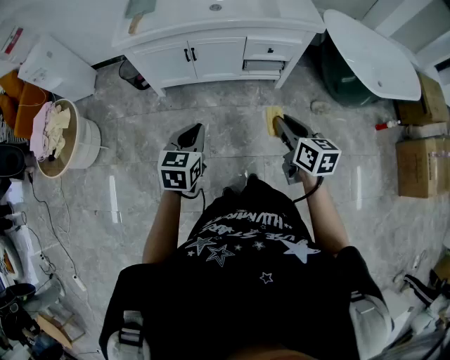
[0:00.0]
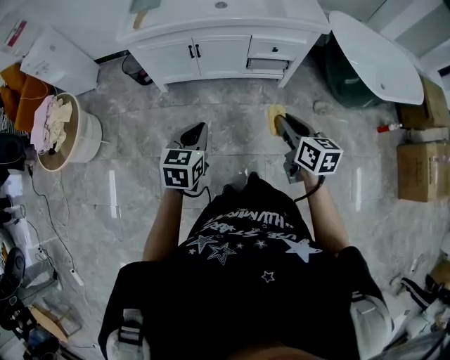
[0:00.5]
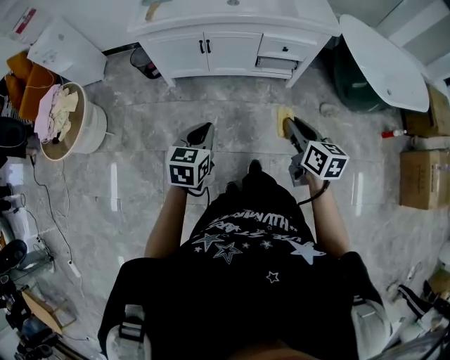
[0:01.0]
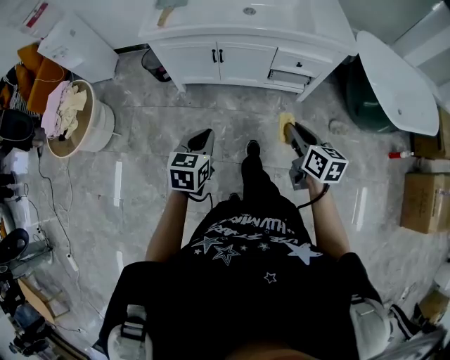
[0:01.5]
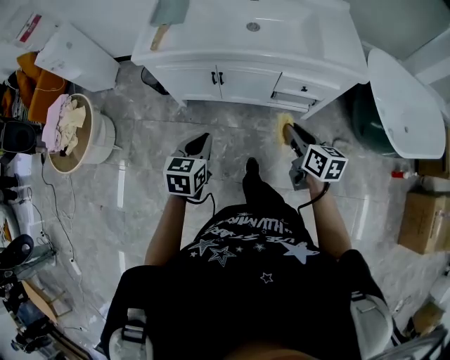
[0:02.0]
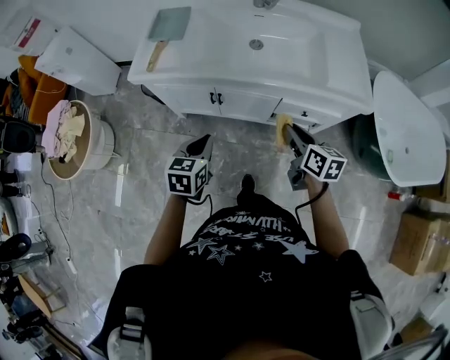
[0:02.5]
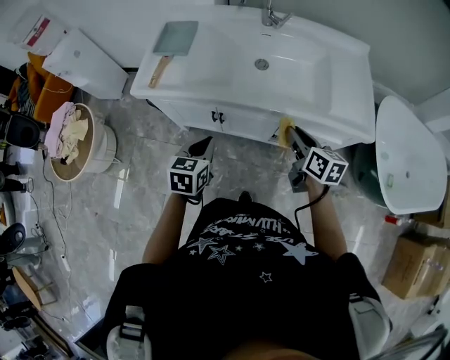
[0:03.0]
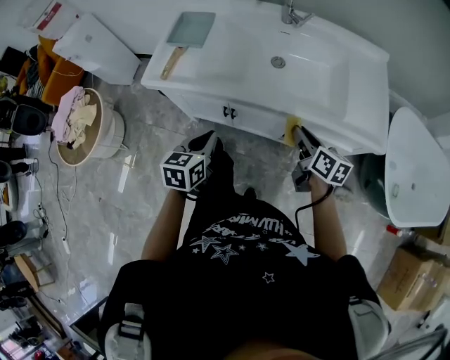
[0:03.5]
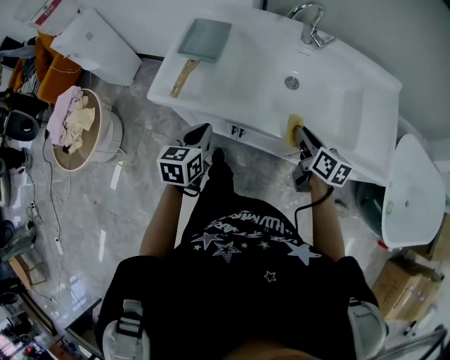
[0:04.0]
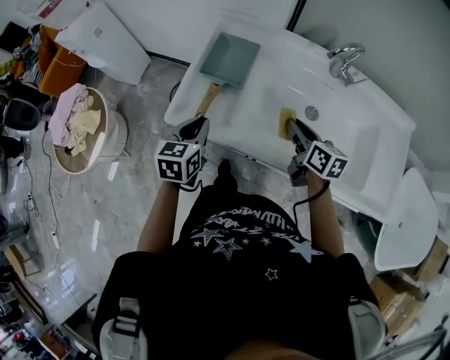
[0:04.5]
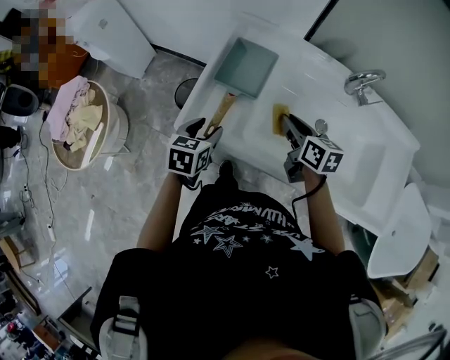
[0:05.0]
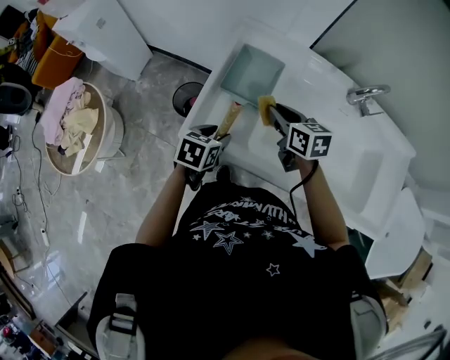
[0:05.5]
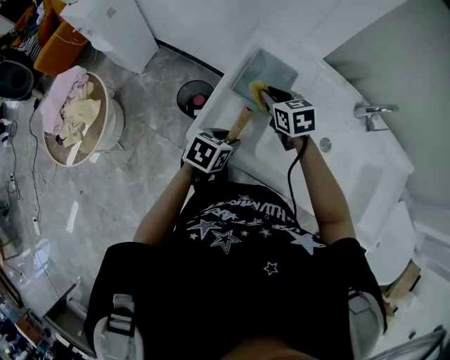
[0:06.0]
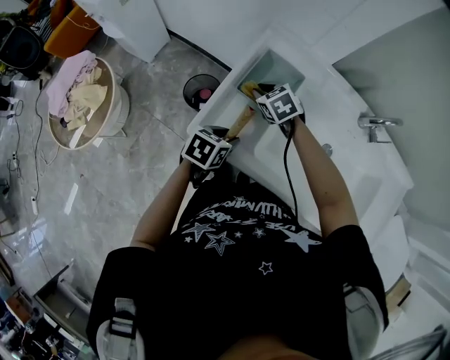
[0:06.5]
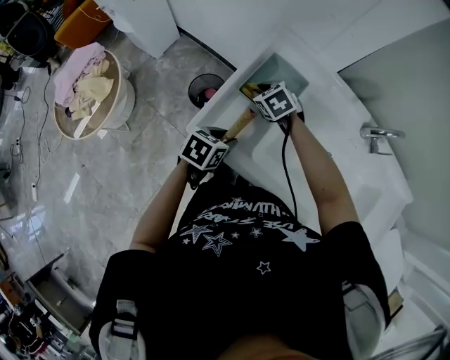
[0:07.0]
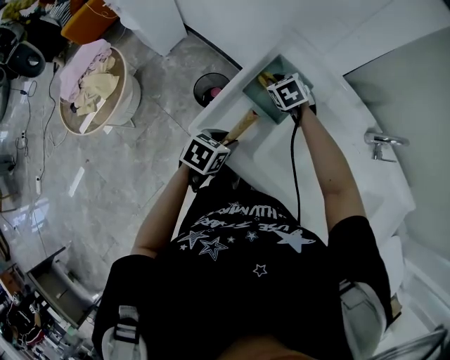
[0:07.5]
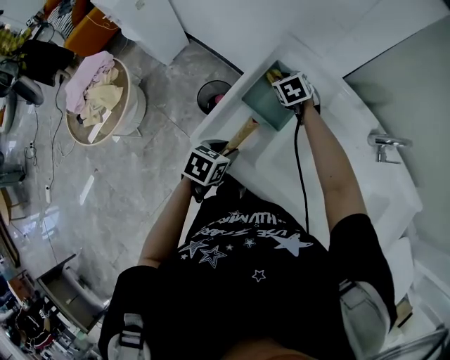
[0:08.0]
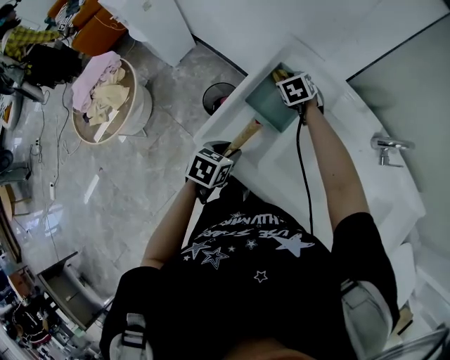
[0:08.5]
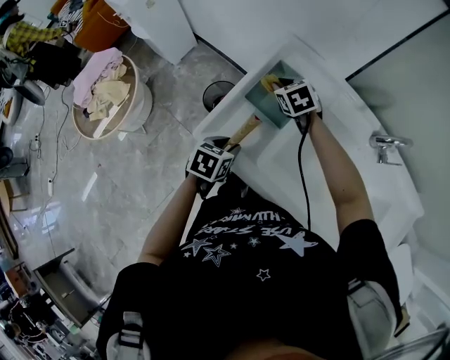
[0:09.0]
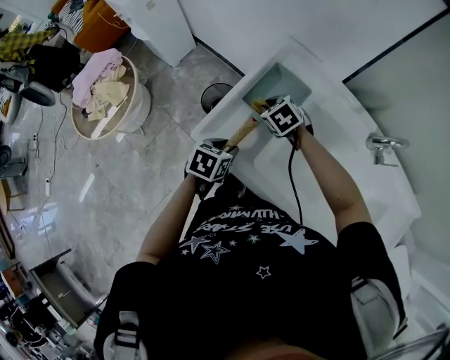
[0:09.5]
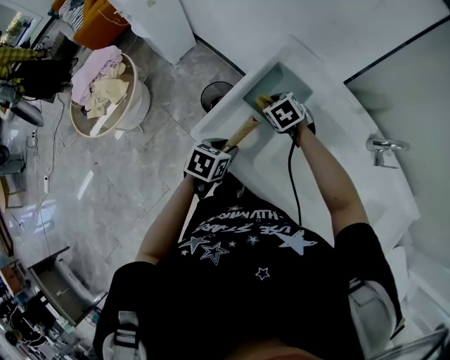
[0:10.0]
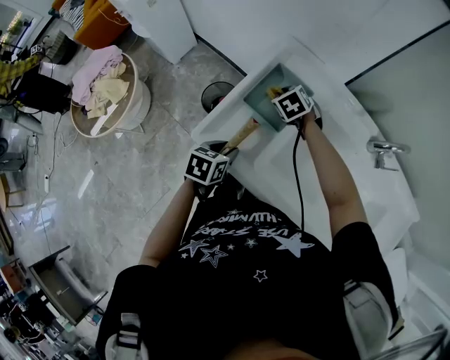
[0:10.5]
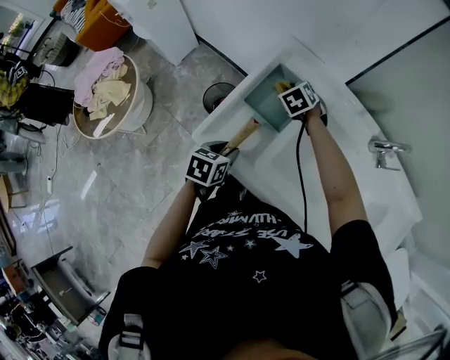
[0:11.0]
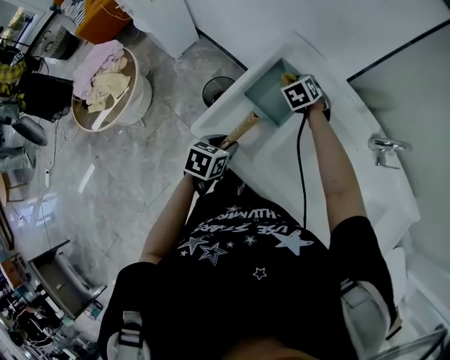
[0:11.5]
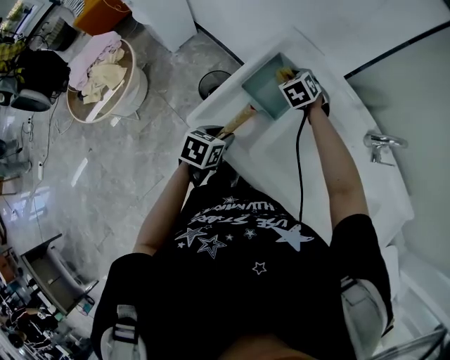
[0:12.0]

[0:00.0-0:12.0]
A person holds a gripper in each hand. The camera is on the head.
0:00.0 to 0:02.0: The two grippers go some 20 cm forward.
0:02.0 to 0:04.0: The two grippers go approximately 35 cm forward.
0:04.0 to 0:06.0: The right gripper travels to the left and forward by roughly 50 cm, and rolls counterclockwise, seen from behind, by approximately 40 degrees. Meanwhile the left gripper shifts roughly 20 cm forward and to the left, turns by some 20 degrees, and opens up.
0:06.0 to 0:08.0: The right gripper is displaced forward and downward by some 15 cm, and changes its angle by about 20 degrees.
0:08.0 to 0:10.0: The right gripper travels backward by roughly 10 cm.
0:10.0 to 0:12.0: The right gripper is displaced forward by approximately 10 cm.

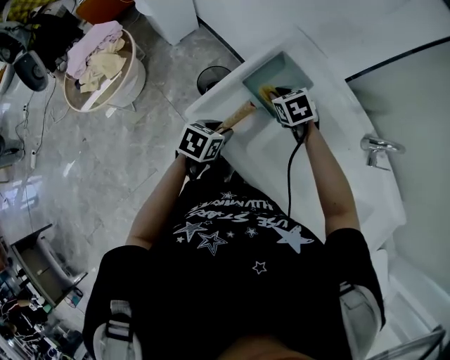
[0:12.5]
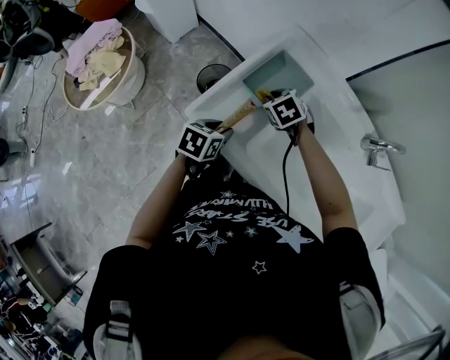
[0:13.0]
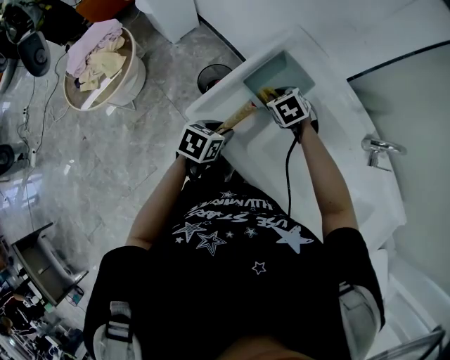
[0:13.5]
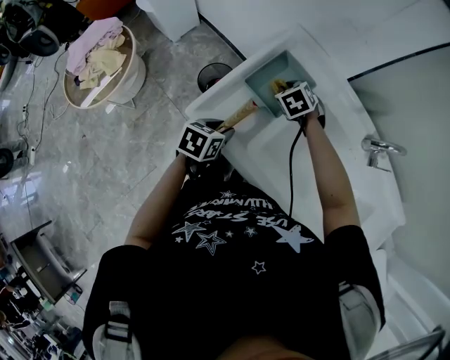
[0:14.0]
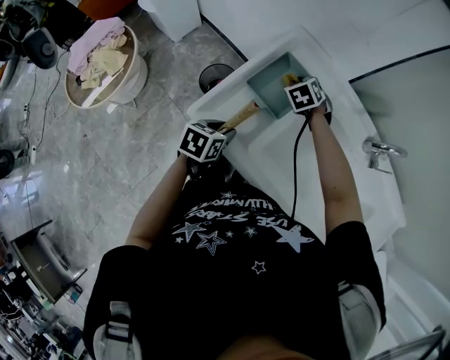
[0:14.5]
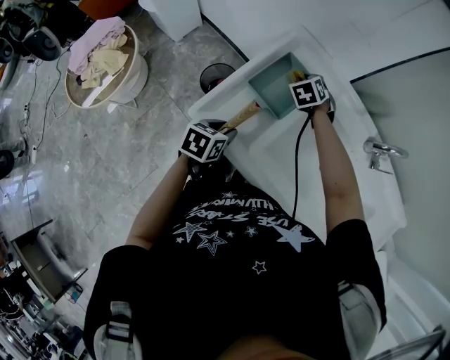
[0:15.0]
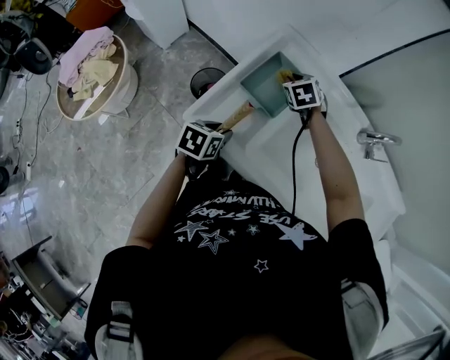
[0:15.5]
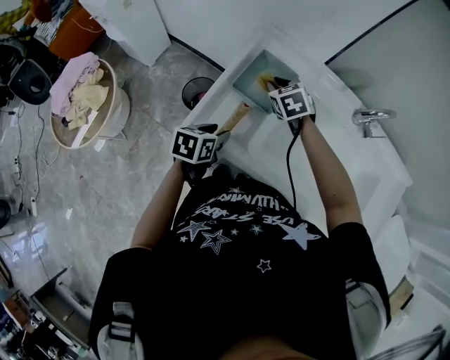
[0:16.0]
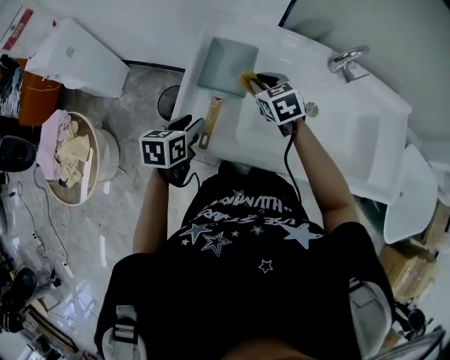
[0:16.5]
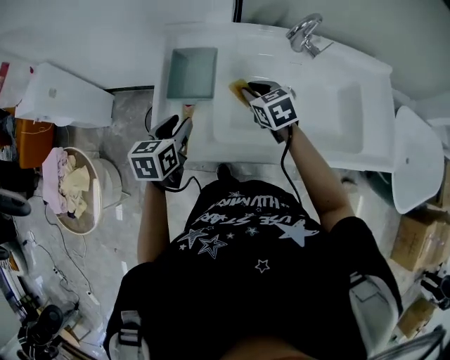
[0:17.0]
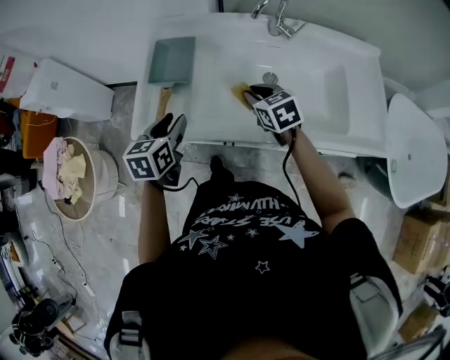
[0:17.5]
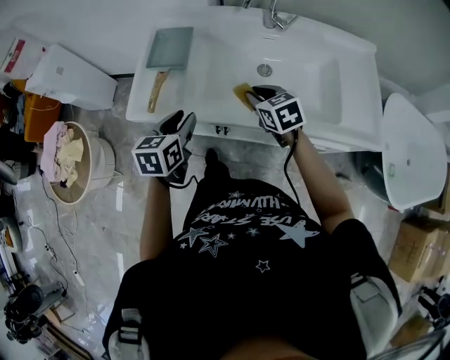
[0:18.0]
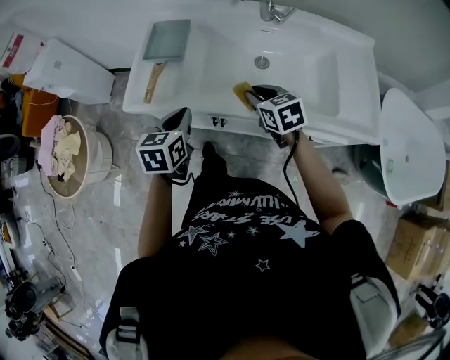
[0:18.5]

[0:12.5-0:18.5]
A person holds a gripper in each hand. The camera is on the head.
0:12.5 to 0:14.5: The right gripper is displaced forward by approximately 10 cm.
0:14.5 to 0:16.5: The left gripper moves about 5 cm. The right gripper shifts some 15 cm backward, upward and to the right, and turns by approximately 30 degrees.
0:16.5 to 0:18.5: The right gripper goes approximately 35 cm backward and to the right. The left gripper is displaced to the right and backward by approximately 25 cm, and closes its fingers.

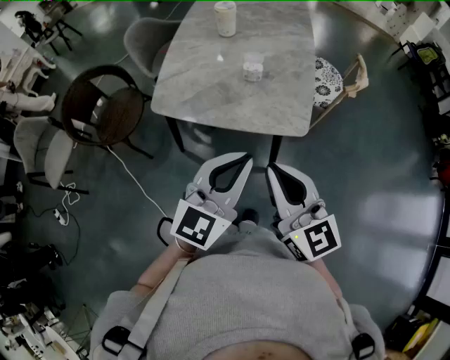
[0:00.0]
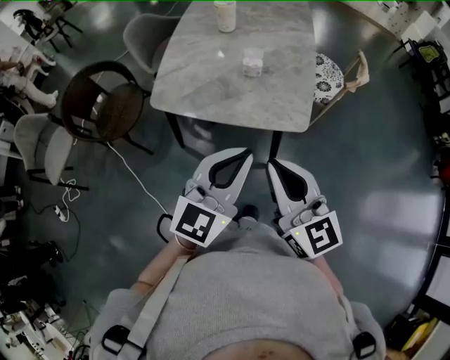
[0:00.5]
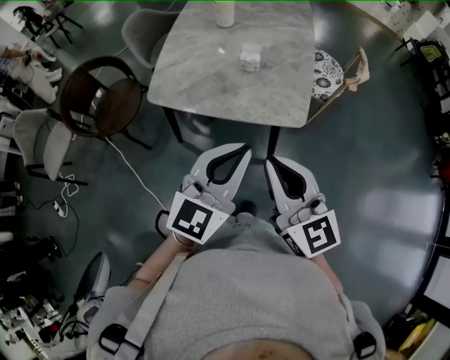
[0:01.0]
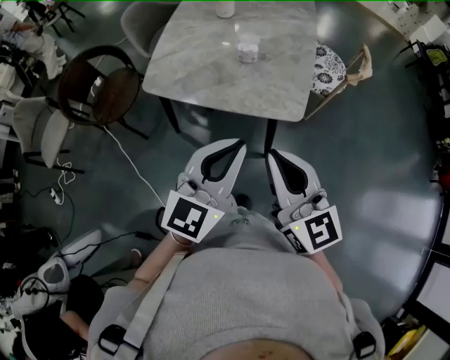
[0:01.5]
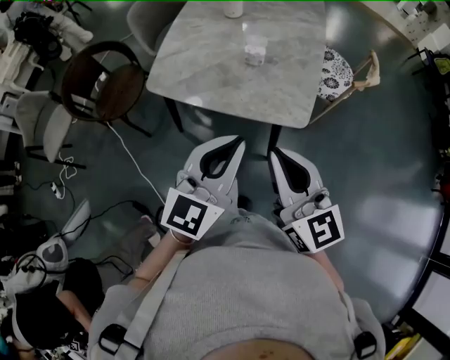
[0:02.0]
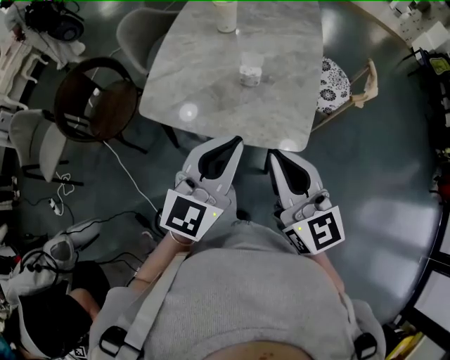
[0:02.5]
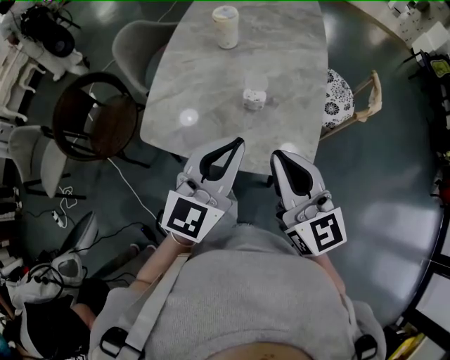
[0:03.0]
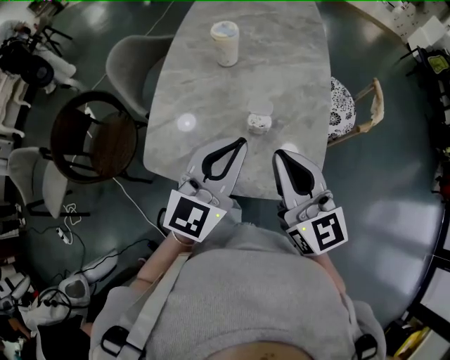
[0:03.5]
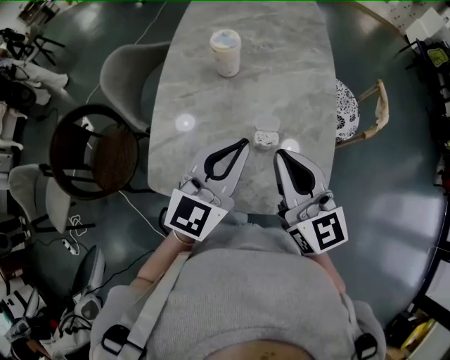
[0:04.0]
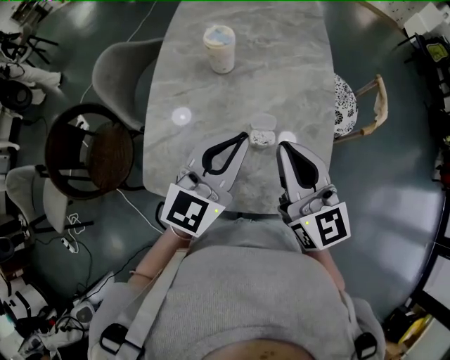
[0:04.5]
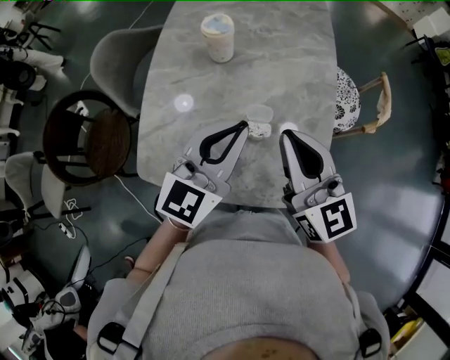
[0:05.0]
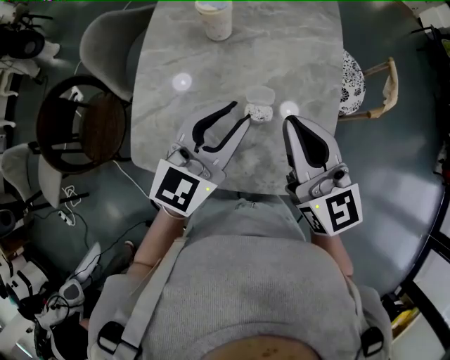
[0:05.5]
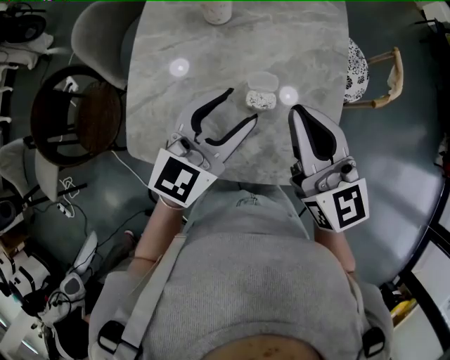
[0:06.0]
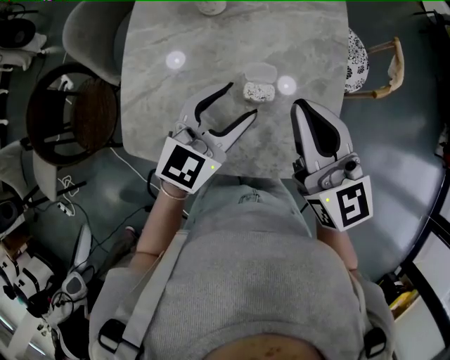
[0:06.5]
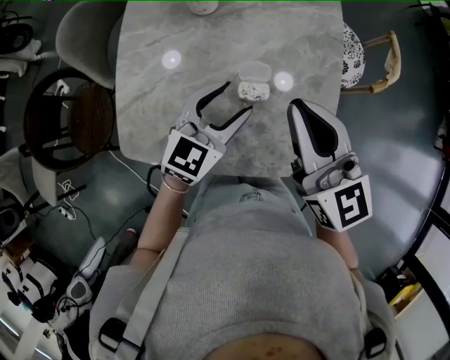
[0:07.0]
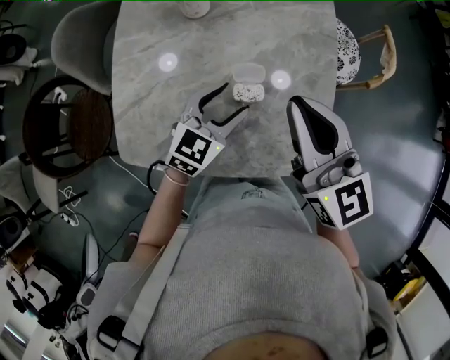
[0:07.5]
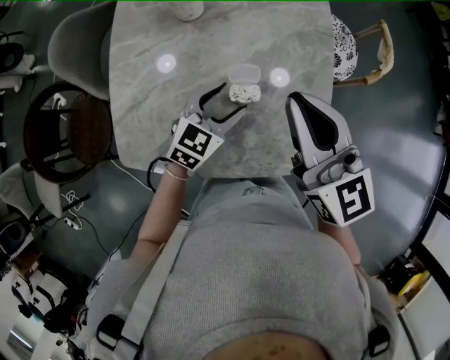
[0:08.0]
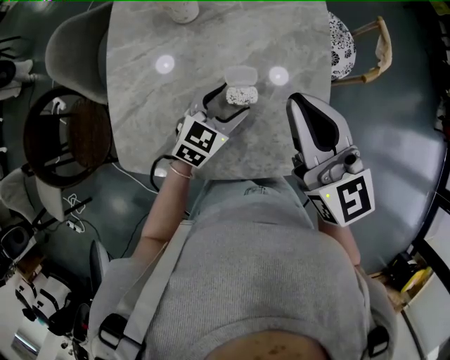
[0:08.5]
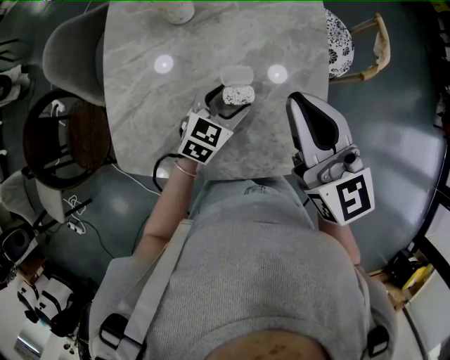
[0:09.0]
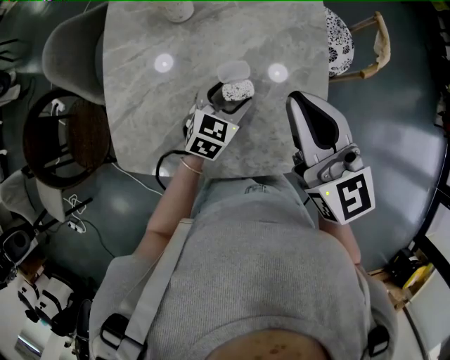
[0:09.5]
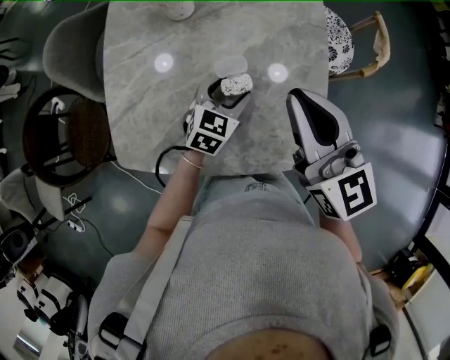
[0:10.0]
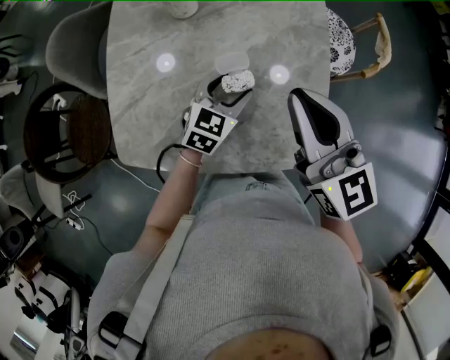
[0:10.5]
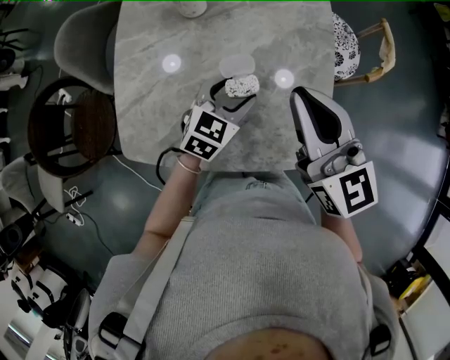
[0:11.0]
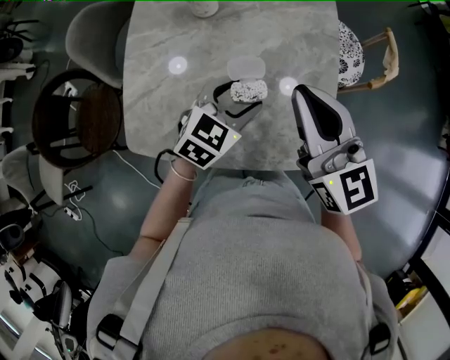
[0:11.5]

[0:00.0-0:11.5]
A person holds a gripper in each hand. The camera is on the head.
0:00.0 to 0:02.0: There are only small adjustments of the grippers.
0:02.0 to 0:04.0: The grippers both shift forward by roughly 30 cm.
0:04.0 to 0:06.0: The right gripper moves about 5 cm. Meanwhile the left gripper shifts approximately 5 cm downward, and opens up.
0:06.0 to 0:07.5: The left gripper heads downward, covering about 15 cm.
0:07.5 to 0:09.5: The left gripper is displaced downward by some 5 cm.
0:09.5 to 0:11.5: The left gripper goes approximately 10 cm upward.
